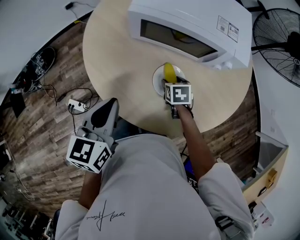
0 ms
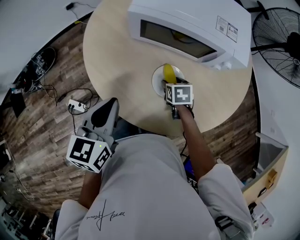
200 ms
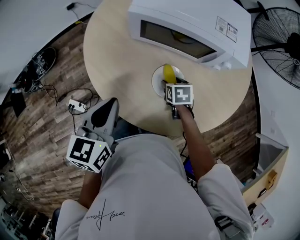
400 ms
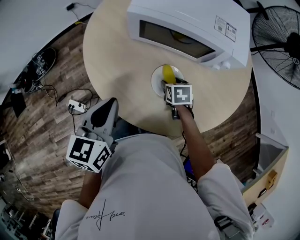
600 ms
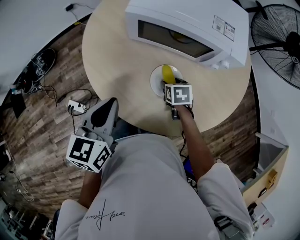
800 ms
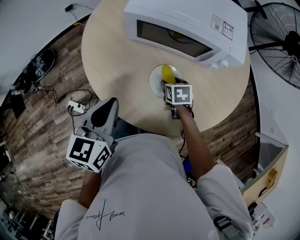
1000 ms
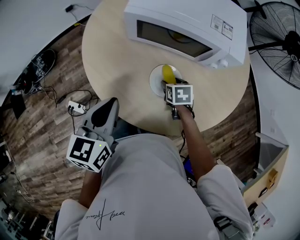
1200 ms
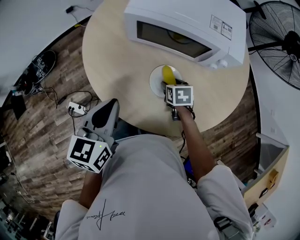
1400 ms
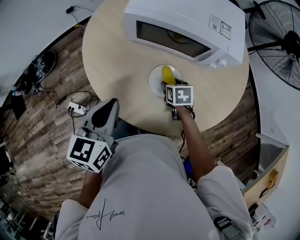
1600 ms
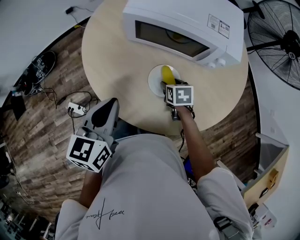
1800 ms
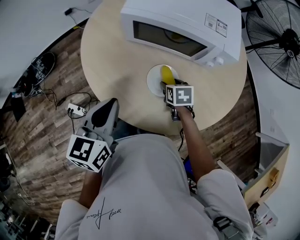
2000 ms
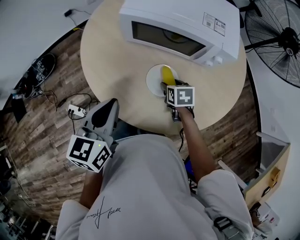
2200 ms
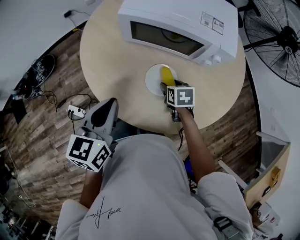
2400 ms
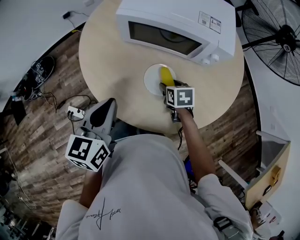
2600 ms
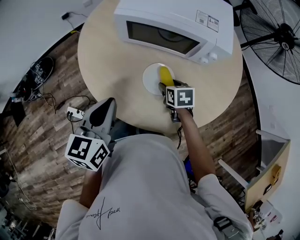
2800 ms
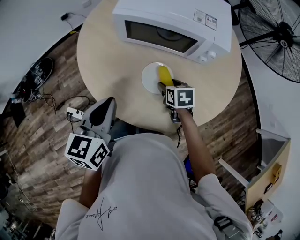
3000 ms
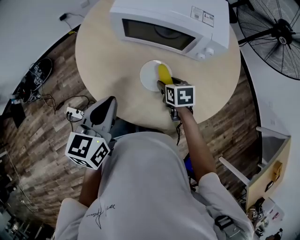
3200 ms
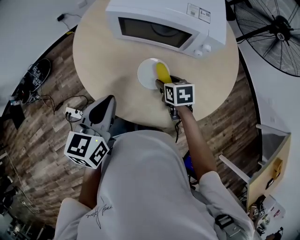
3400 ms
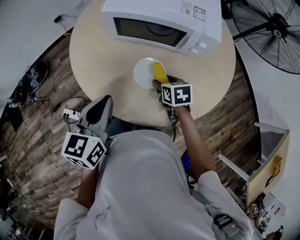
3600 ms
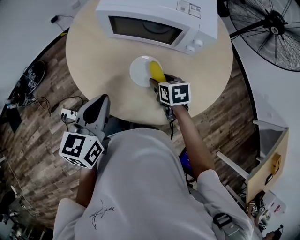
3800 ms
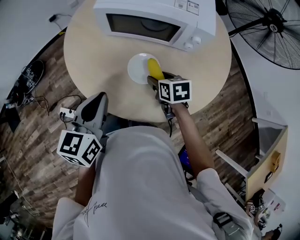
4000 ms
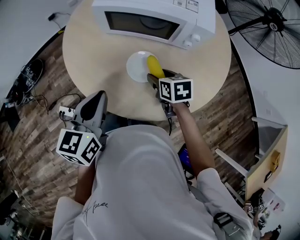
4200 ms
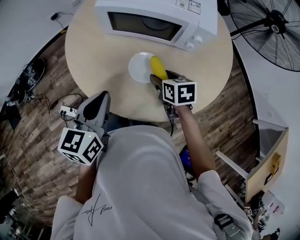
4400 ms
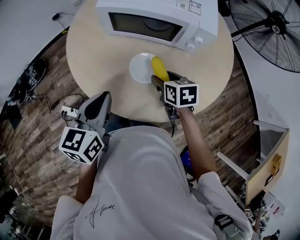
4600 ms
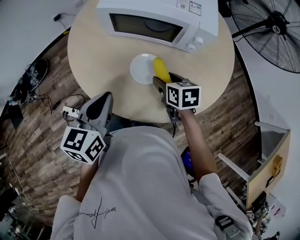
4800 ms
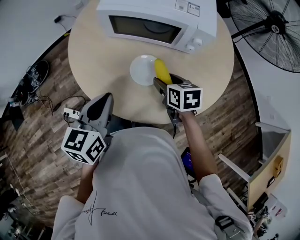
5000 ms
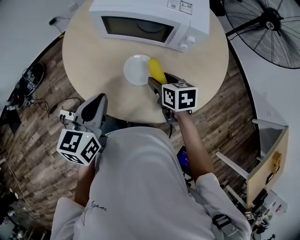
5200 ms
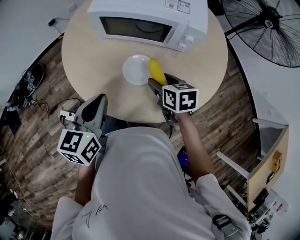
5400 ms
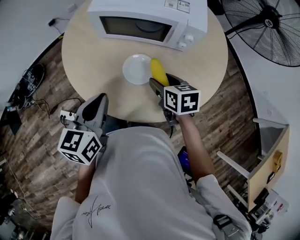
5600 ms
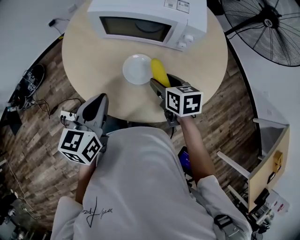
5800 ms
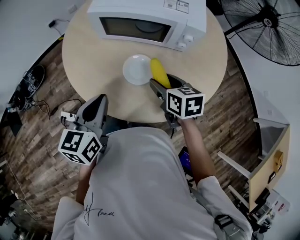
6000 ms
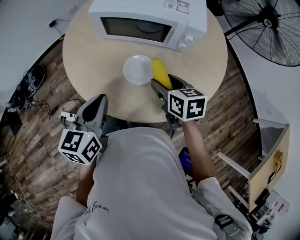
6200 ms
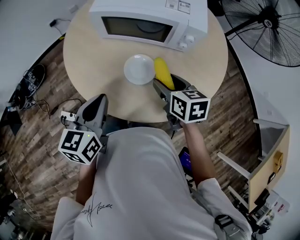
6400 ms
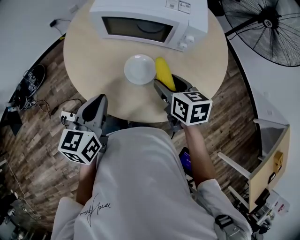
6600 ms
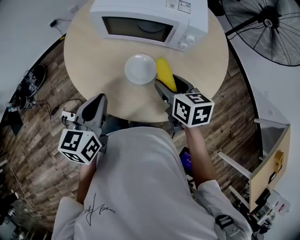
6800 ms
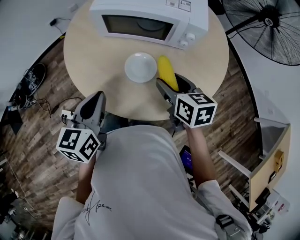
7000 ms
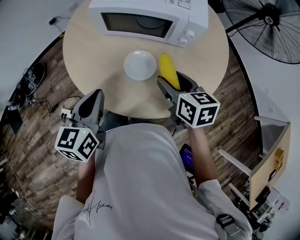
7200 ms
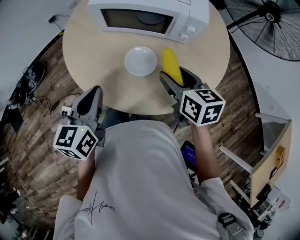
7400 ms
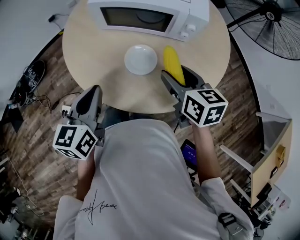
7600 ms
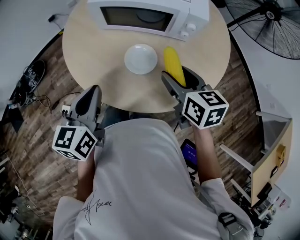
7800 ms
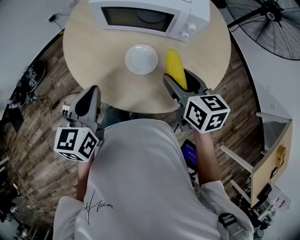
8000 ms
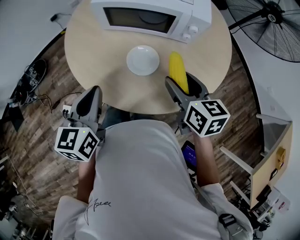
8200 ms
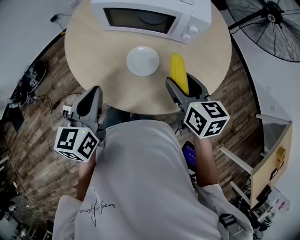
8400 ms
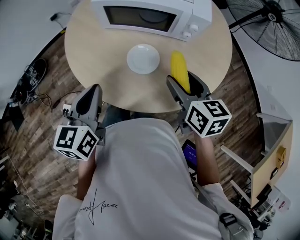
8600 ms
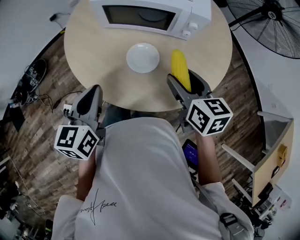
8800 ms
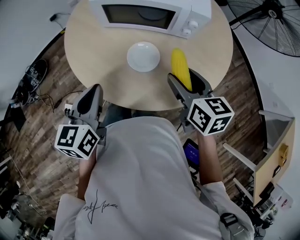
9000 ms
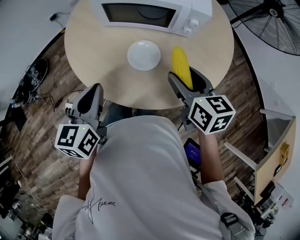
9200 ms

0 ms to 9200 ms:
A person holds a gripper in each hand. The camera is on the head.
0 ms to 1600 ms: There are only small adjustments of the grippers.
1600 ms to 3000 ms: The grippers make only small movements.
3000 ms to 4600 ms: The right gripper heads upward, covering about 5 cm.
4600 ms to 6200 ms: The right gripper heads upward, covering approximately 5 cm.
6200 ms to 7600 ms: The right gripper is displaced upward by some 5 cm.
7600 ms to 9200 ms: The grippers stay close to where they were, moving slightly.

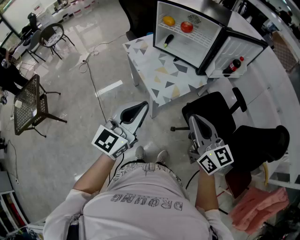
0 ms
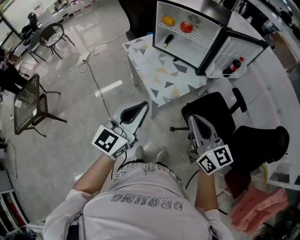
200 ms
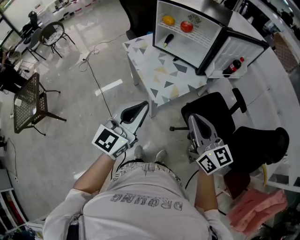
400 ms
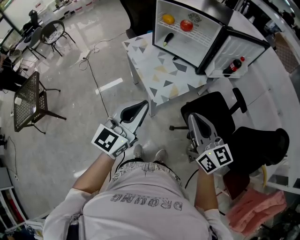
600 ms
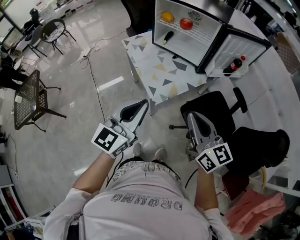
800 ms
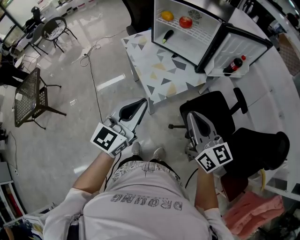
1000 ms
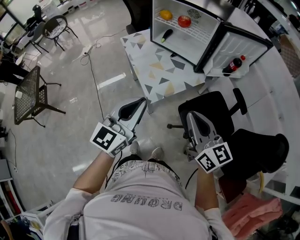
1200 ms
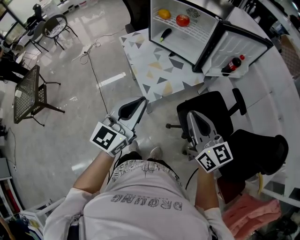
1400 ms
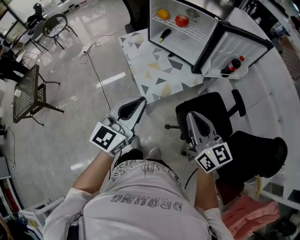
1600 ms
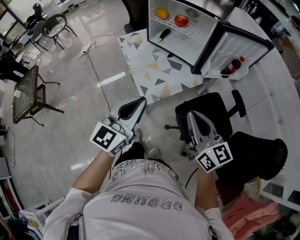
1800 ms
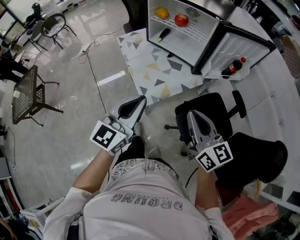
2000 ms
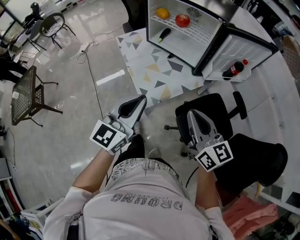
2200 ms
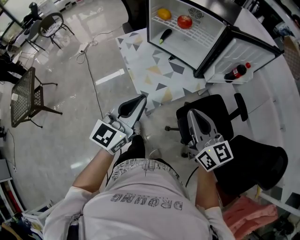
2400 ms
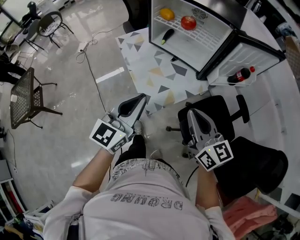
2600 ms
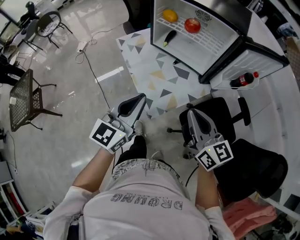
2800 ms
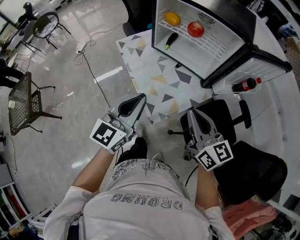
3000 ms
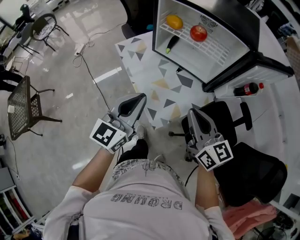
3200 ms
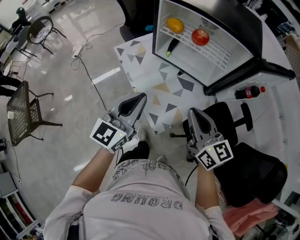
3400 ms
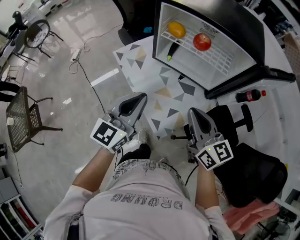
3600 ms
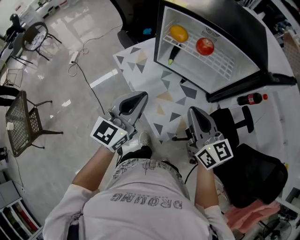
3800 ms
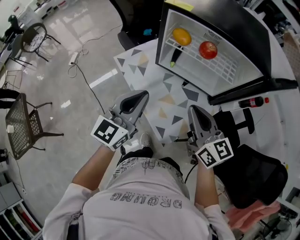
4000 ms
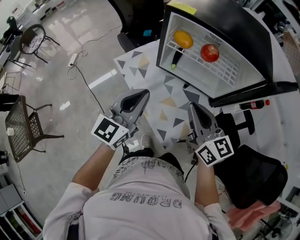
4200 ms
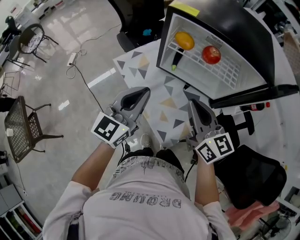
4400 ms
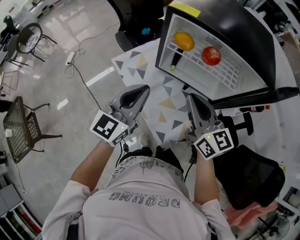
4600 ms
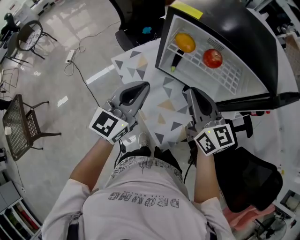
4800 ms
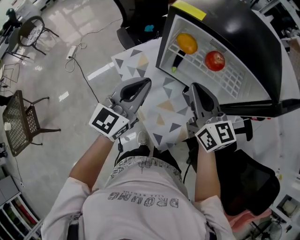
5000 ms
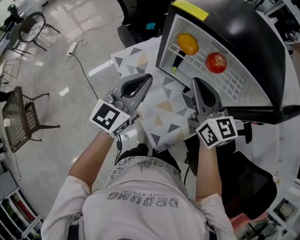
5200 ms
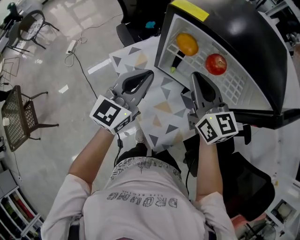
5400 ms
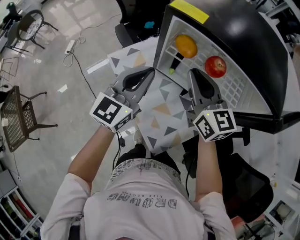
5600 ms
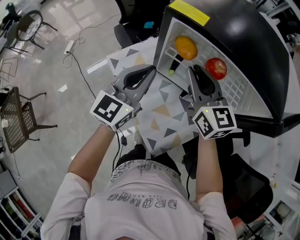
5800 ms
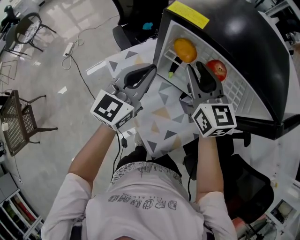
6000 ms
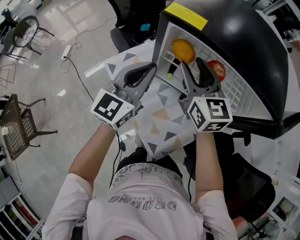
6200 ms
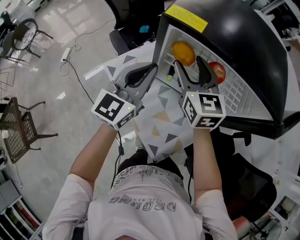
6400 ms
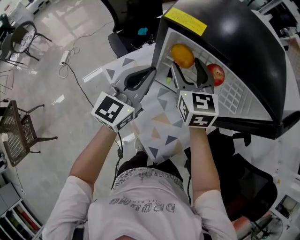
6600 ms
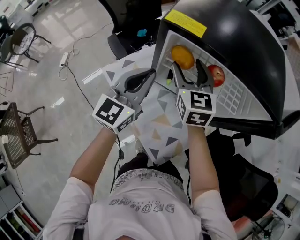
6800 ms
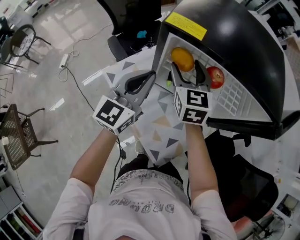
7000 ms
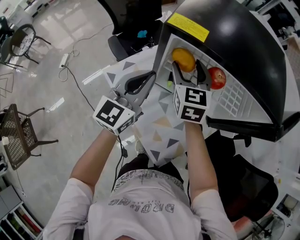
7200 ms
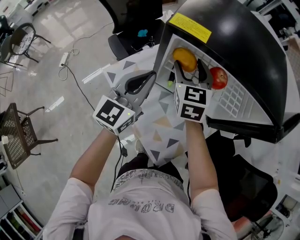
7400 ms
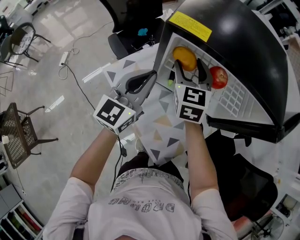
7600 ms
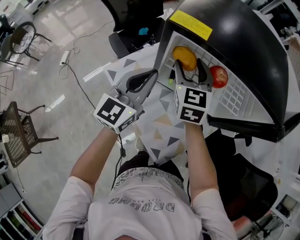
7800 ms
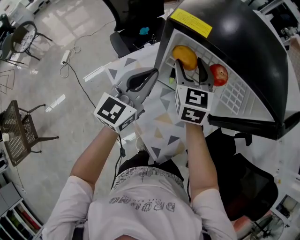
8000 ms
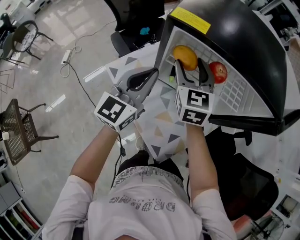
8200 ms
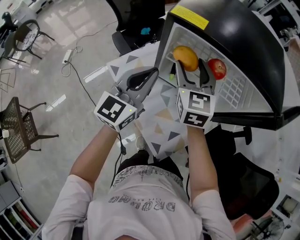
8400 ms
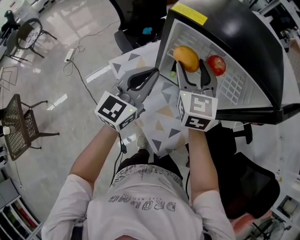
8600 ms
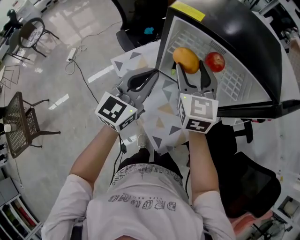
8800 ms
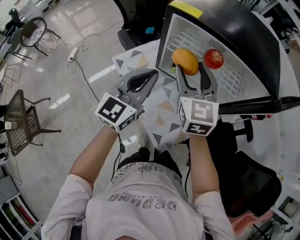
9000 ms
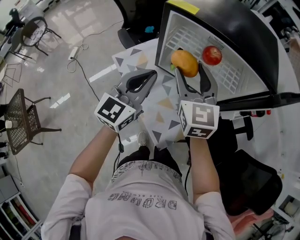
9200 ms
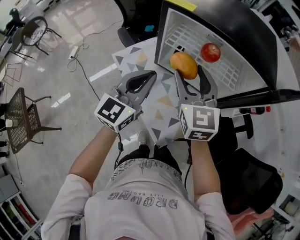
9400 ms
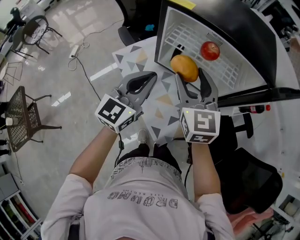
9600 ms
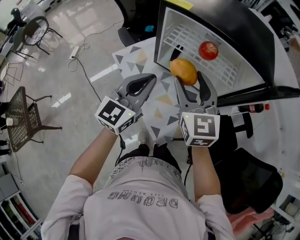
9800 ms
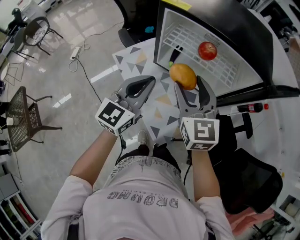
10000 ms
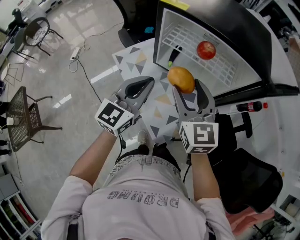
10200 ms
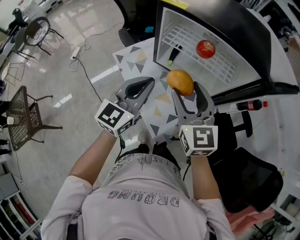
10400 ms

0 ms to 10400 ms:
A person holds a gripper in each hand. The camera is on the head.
0 ms to 1400 ms: Both grippers travel together to the right, some 5 cm.
1400 ms to 3000 ms: The two grippers go roughly 15 cm forward.
3000 ms to 4400 ms: The grippers both shift forward and to the left by roughly 20 cm.
4400 ms to 6000 ms: Both grippers move forward, approximately 15 cm. The right gripper opens its fingers.
6000 ms to 7400 ms: The right gripper is displaced forward by about 5 cm, turns by some 30 degrees, and opens its fingers.
7400 ms to 9000 ms: The left gripper heads backward, covering roughly 10 cm. Meanwhile the right gripper is displaced backward and upward by roughly 15 cm.
9000 ms to 10400 ms: The right gripper travels backward by about 10 cm; the left gripper is displaced backward by about 5 cm.

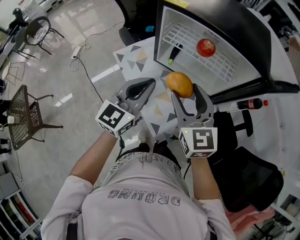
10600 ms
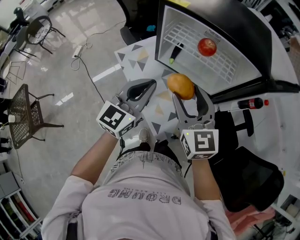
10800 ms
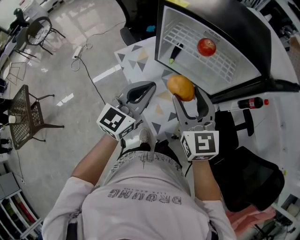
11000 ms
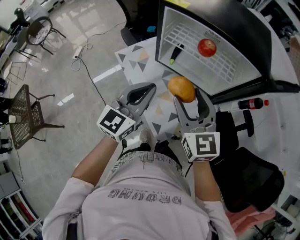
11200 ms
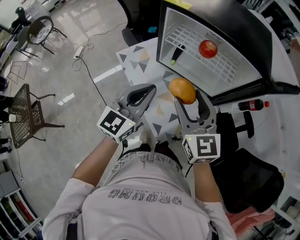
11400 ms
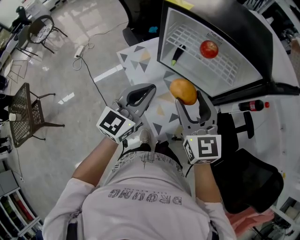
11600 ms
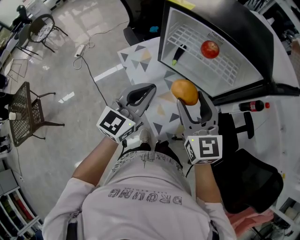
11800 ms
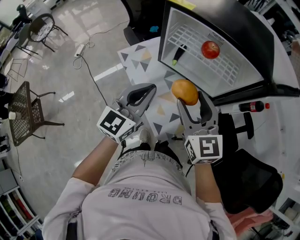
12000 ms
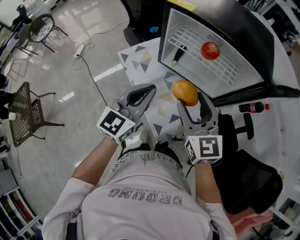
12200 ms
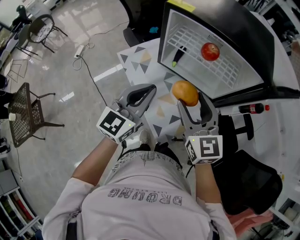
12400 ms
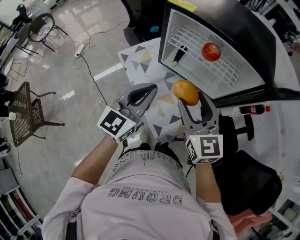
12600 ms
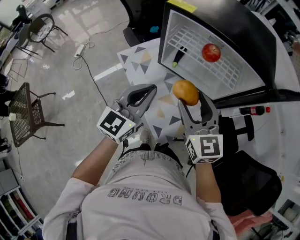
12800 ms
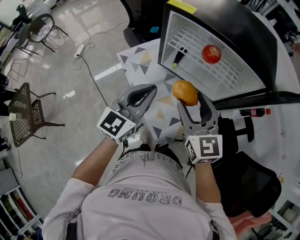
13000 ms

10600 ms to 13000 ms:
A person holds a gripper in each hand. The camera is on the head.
10600 ms to 13000 ms: The grippers stay close to where they were, moving slightly.

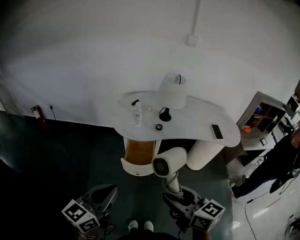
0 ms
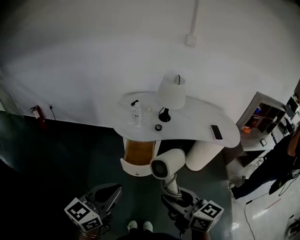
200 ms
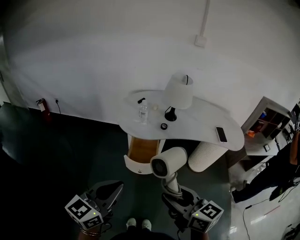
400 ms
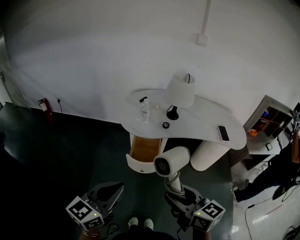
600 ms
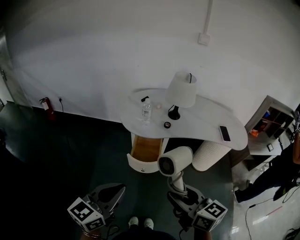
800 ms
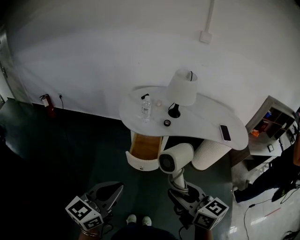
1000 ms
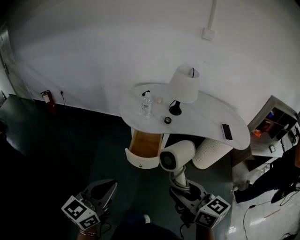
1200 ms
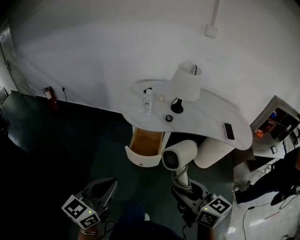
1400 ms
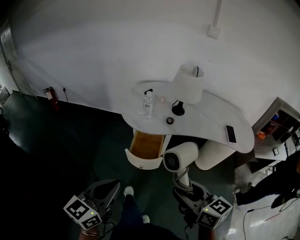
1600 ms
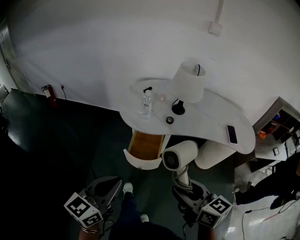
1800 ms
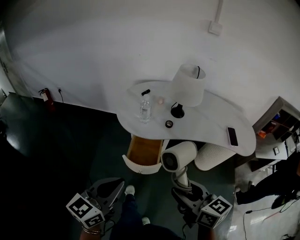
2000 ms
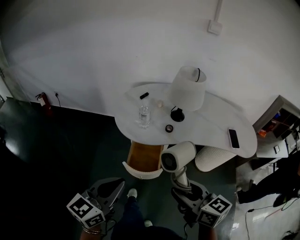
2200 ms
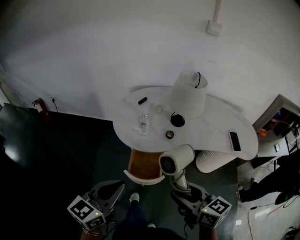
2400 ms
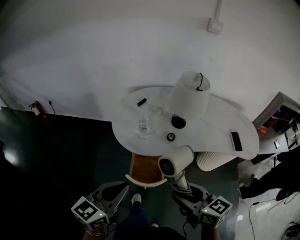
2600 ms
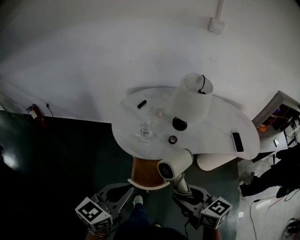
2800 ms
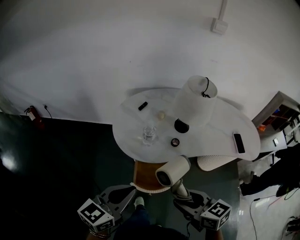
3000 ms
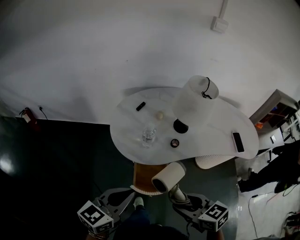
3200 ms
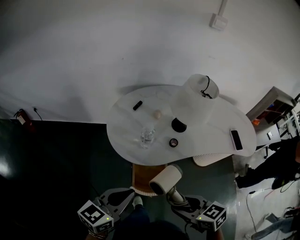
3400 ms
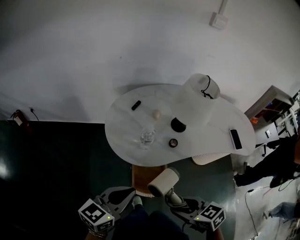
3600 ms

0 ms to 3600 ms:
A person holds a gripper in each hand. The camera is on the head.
0 ms to 1800 ms: The right gripper heads forward and to the right, covering some 10 cm. The left gripper shifts by approximately 5 cm.
1800 ms to 3600 ms: The left gripper shifts about 25 cm forward, and changes its angle by approximately 30 degrees; the right gripper is displaced forward, to the left and downward by some 20 cm, and changes its angle by some 30 degrees.
